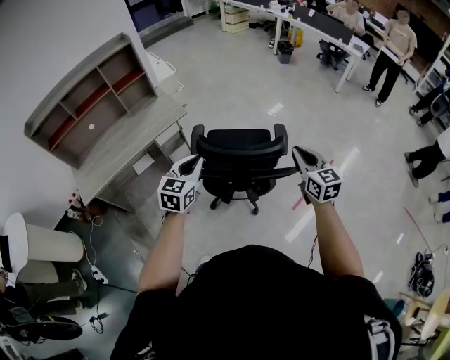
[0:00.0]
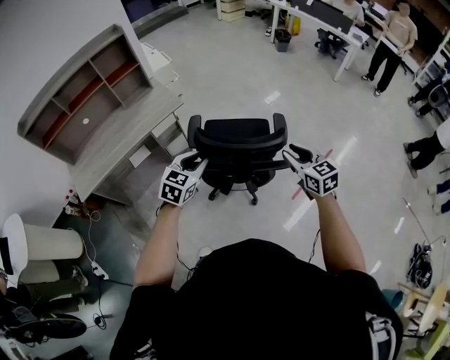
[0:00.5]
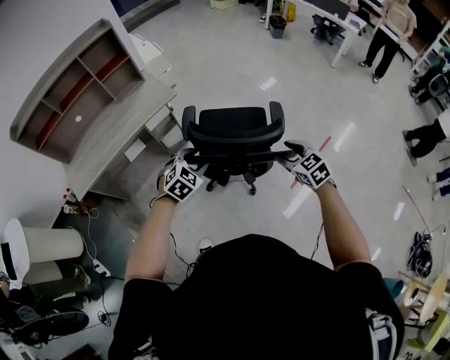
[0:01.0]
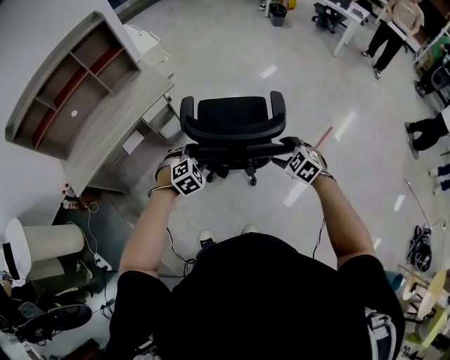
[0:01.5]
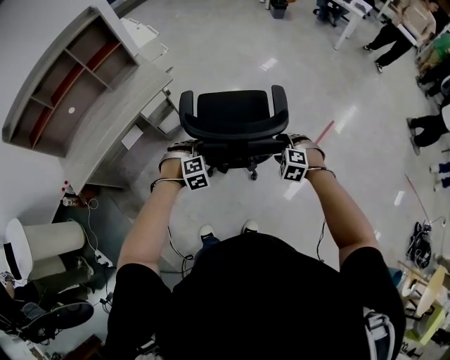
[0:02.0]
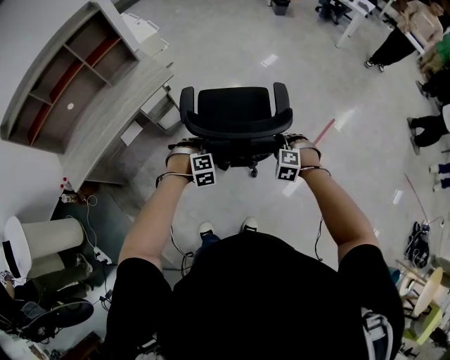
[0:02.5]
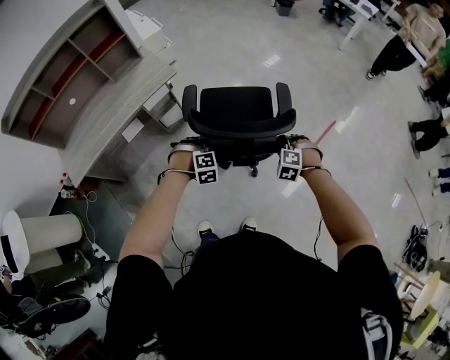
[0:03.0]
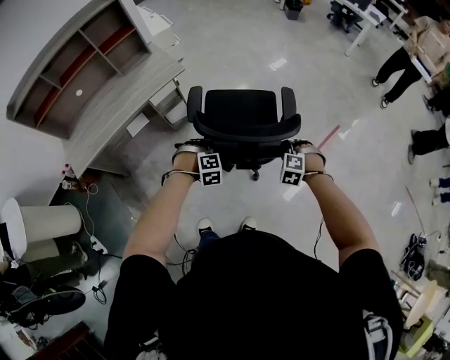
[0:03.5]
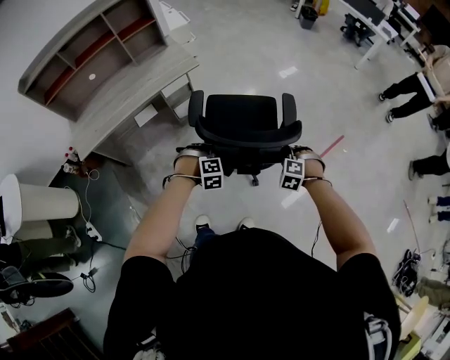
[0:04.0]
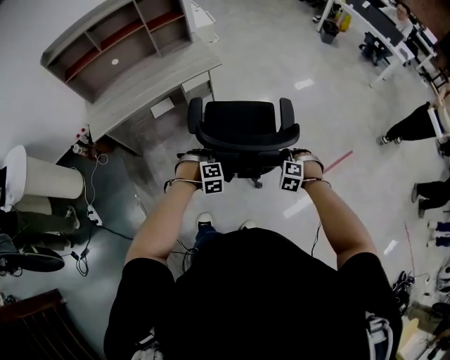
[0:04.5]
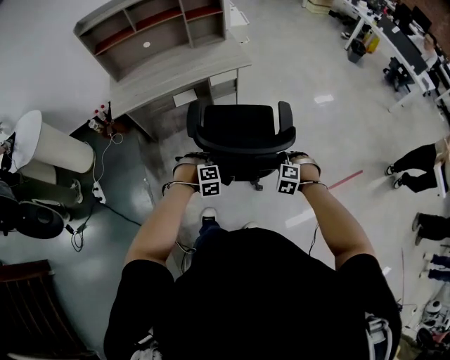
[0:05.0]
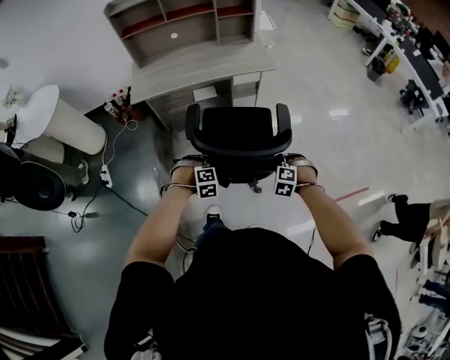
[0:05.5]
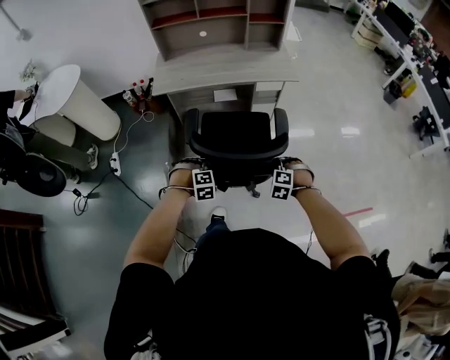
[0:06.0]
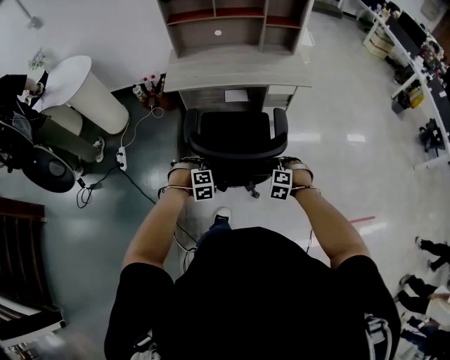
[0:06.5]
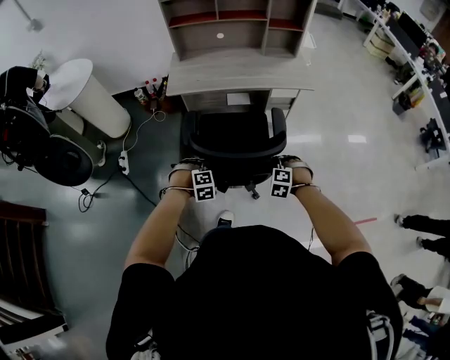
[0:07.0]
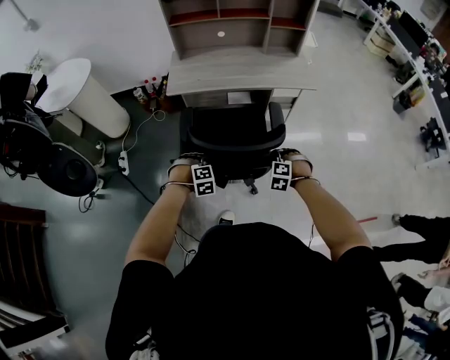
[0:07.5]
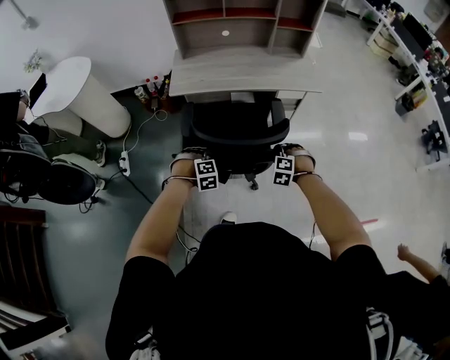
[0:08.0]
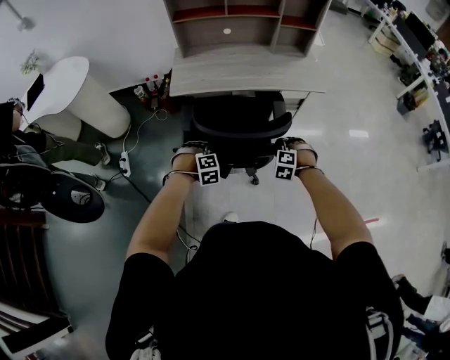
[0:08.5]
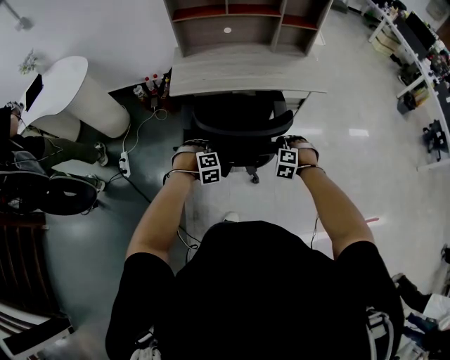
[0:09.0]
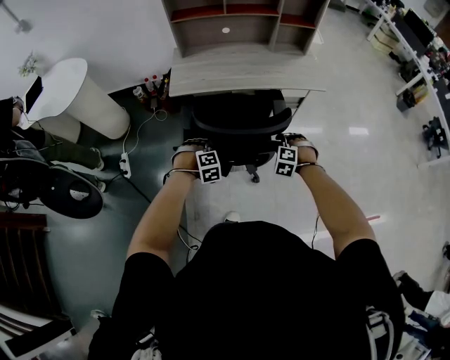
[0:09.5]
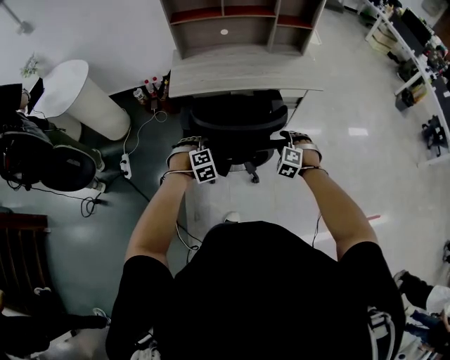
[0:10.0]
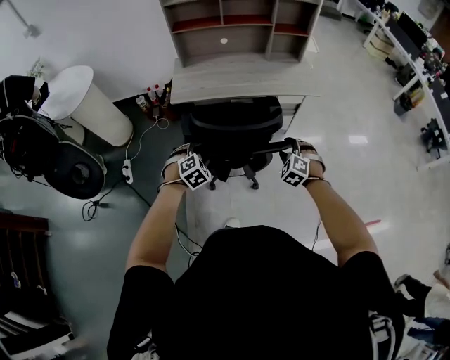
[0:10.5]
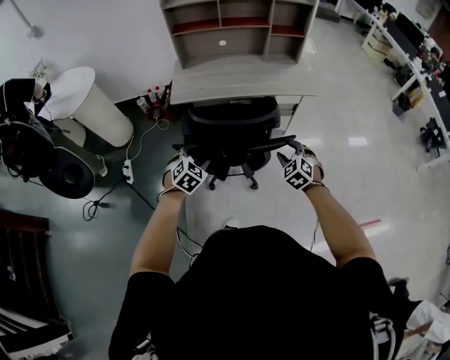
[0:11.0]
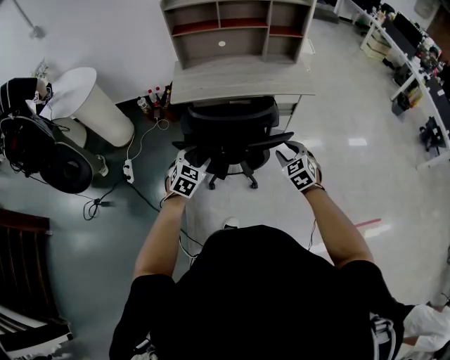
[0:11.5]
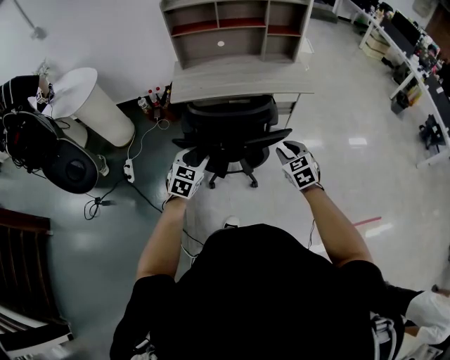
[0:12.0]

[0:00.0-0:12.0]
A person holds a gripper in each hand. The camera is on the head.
0:00.0 to 0:02.0: Both grippers travel together downward, roughly 25 cm. The left gripper tilts its fingers some 40 degrees downward, and opens its fingers. Meanwhile the right gripper tips its fingers downward by some 50 degrees, and opens.
0:02.0 to 0:04.0: The right gripper travels backward by about 5 cm, and closes its fingers; the left gripper heads backward, covering approximately 10 cm, and closes its fingers.
0:04.0 to 0:06.0: The left gripper ends up some 35 cm from where it was, and changes its angle by about 30 degrees, while the right gripper moves approximately 35 cm, and turns by approximately 30 degrees.
0:06.0 to 0:08.0: The grippers both shift forward and to the left by some 15 cm.
0:08.0 to 0:10.0: The grippers both shift forward by approximately 5 cm. The left gripper opens its fingers. The right gripper opens.
0:10.0 to 0:12.0: The two grippers go about 15 cm upward and backward. The right gripper rotates around the line of its fingers by approximately 50 degrees, clockwise from behind, and closes its fingers. The left gripper rotates around the line of its fingers by about 50 degrees, counterclockwise from behind.

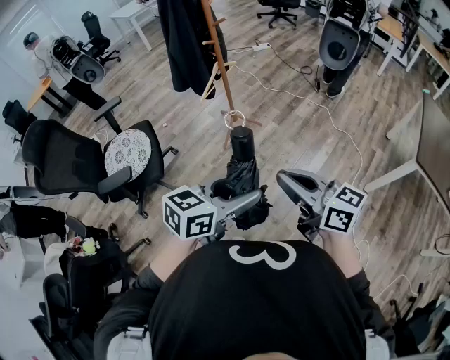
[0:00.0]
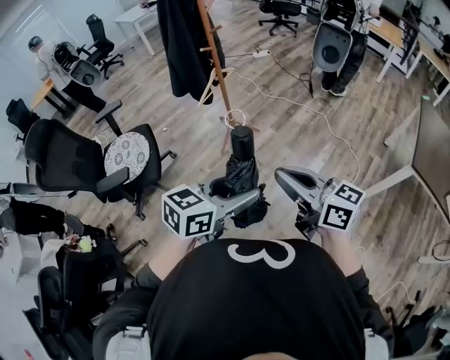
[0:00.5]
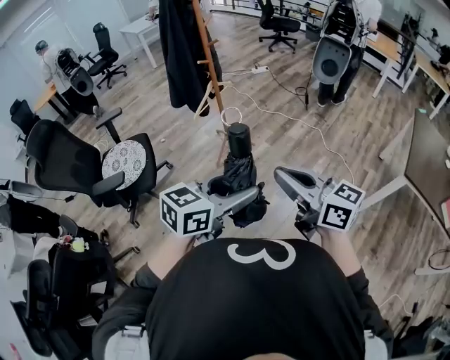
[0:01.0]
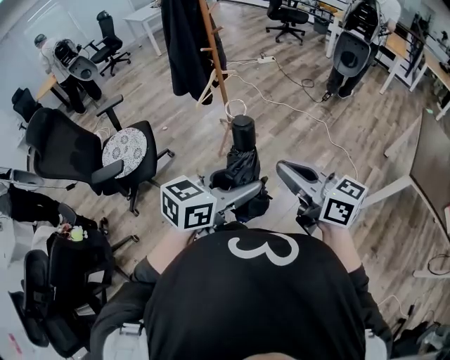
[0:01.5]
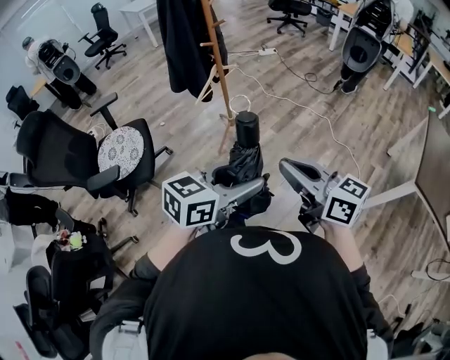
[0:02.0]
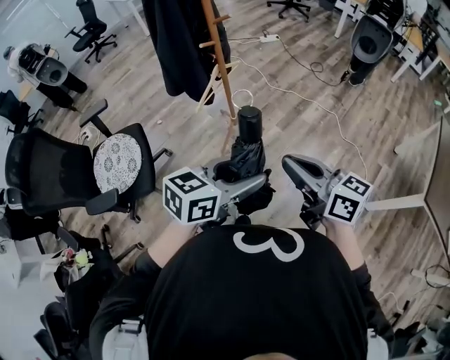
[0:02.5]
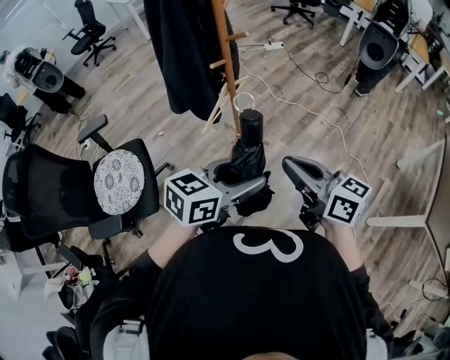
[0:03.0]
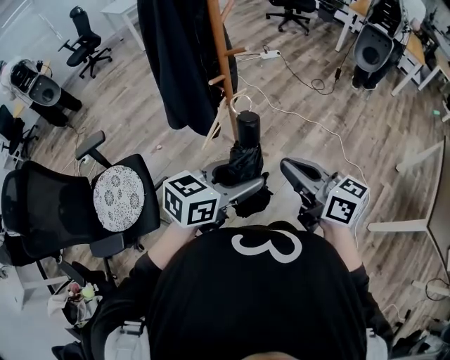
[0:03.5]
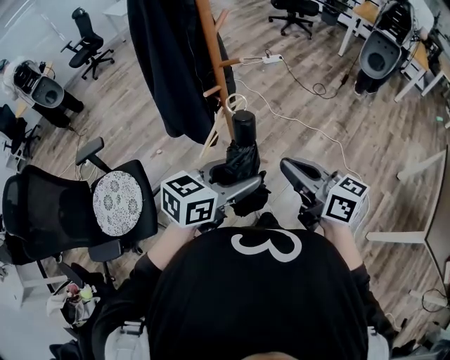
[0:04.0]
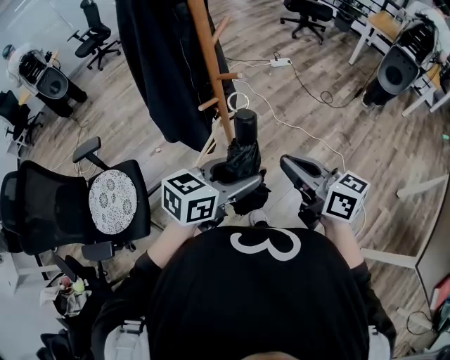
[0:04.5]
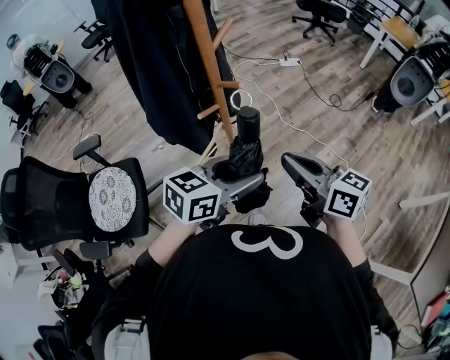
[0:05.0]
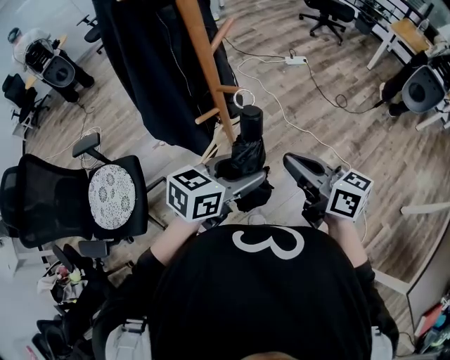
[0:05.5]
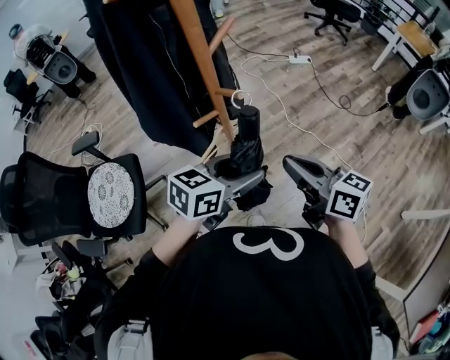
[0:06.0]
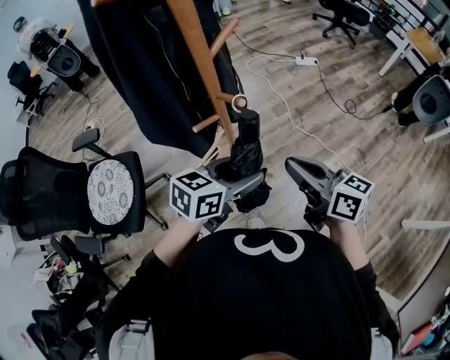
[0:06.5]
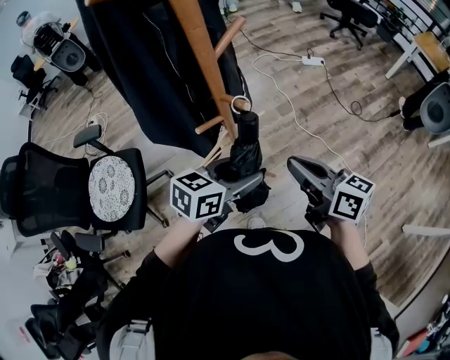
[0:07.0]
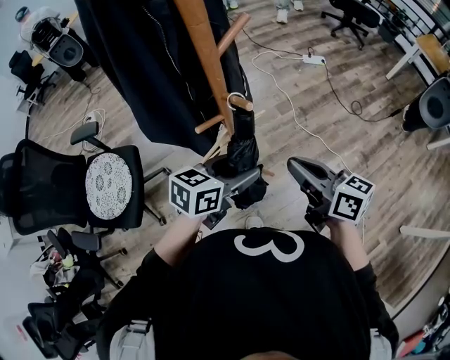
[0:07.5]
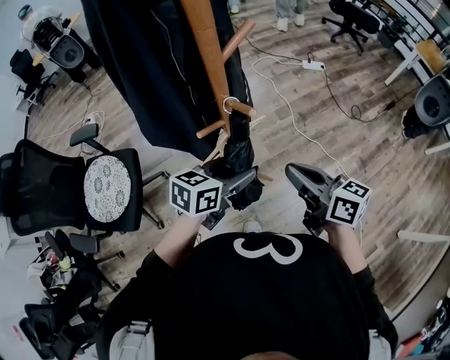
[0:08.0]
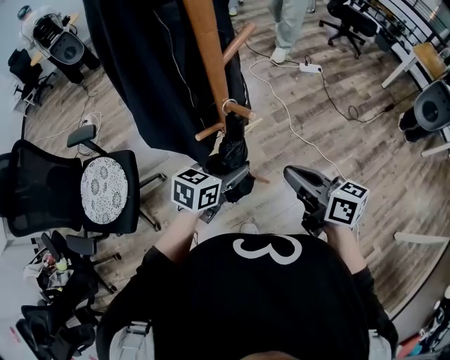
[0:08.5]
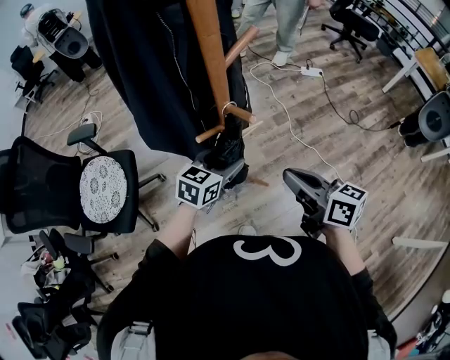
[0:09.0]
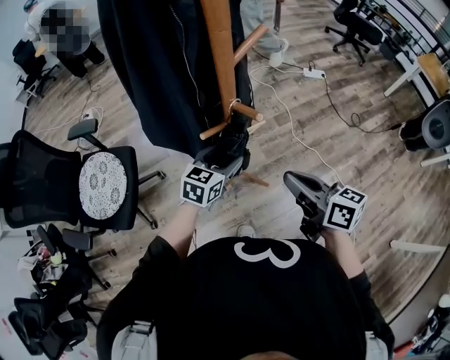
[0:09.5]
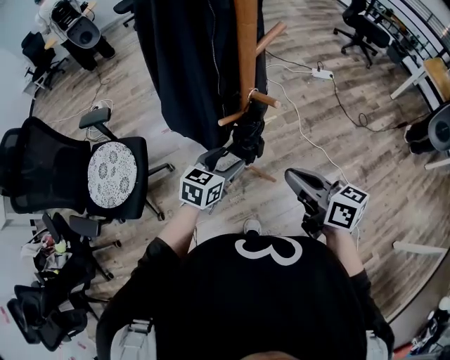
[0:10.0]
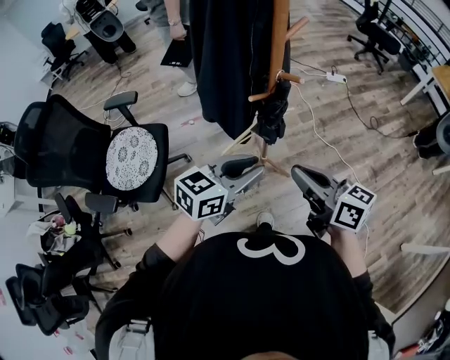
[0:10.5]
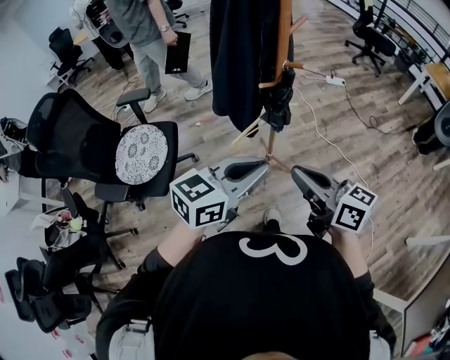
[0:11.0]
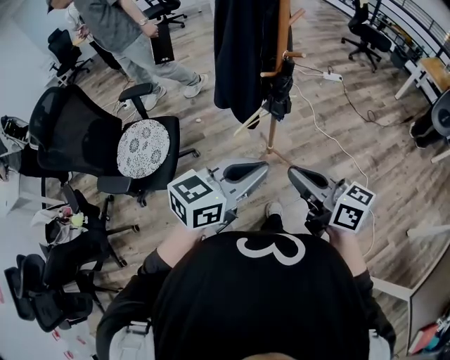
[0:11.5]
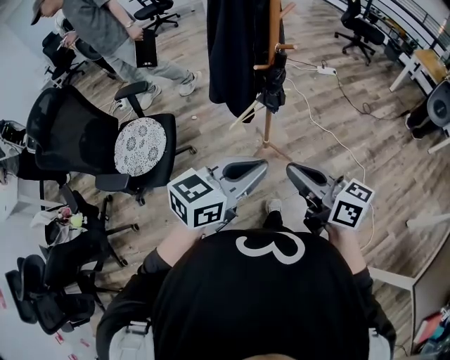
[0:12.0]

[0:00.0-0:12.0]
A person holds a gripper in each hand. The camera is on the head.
0:00.0 to 0:02.0: Both grippers travel together forward and to the right, some 10 cm.
0:02.0 to 0:04.0: The grippers both shift forward by some 35 cm.
0:04.0 to 0:06.0: The grippers both shift forward by some 20 cm.
0:06.0 to 0:08.0: The left gripper travels downward and forward by roughly 10 cm; the right gripper ends up about 5 cm from where it was.
0:08.0 to 0:10.0: The right gripper moves roughly 5 cm; the left gripper is displaced to the left and downward by some 10 cm.
0:10.0 to 0:12.0: The right gripper travels backward by about 25 cm, while the left gripper is displaced backward and upward by about 40 cm, turns by approximately 30 degrees, and closes its fingers.

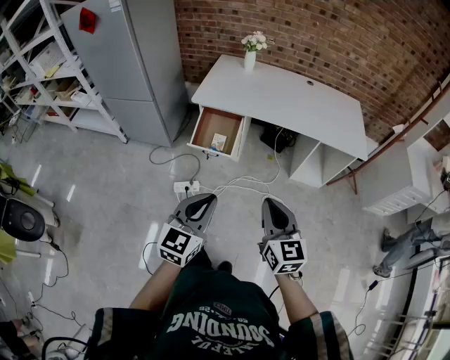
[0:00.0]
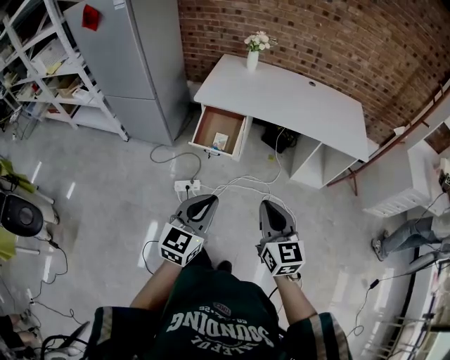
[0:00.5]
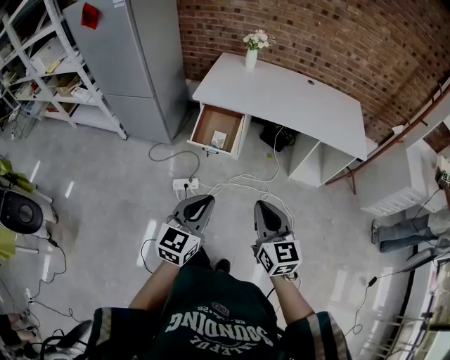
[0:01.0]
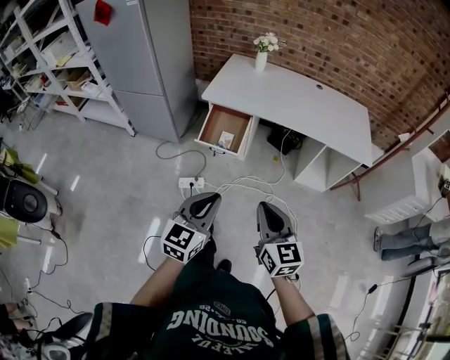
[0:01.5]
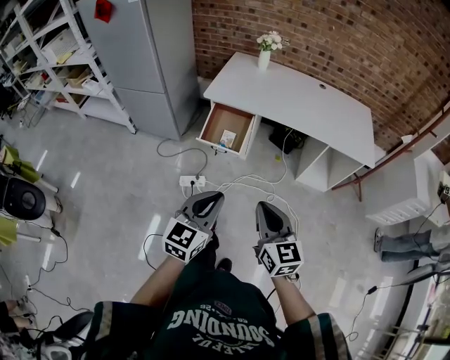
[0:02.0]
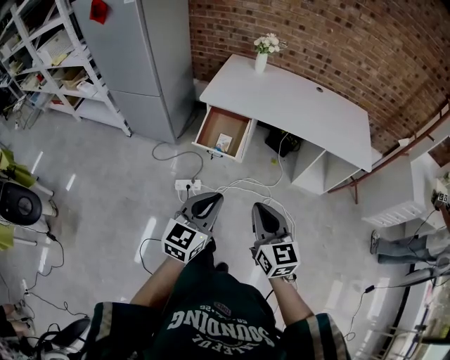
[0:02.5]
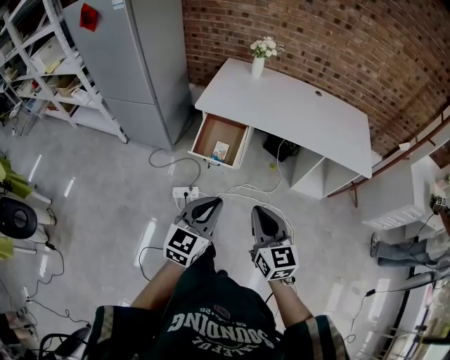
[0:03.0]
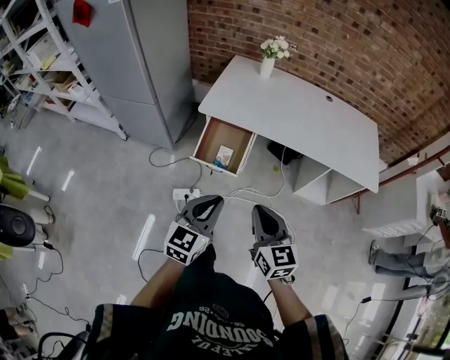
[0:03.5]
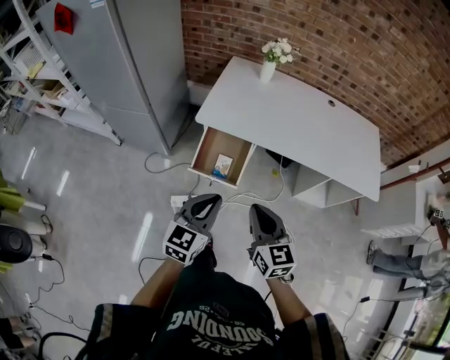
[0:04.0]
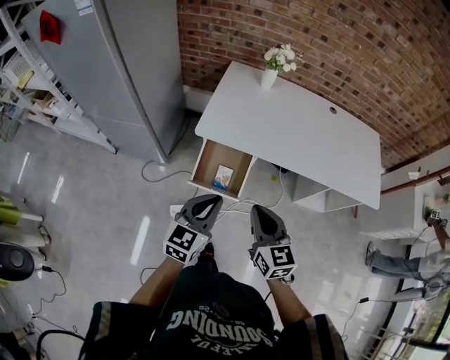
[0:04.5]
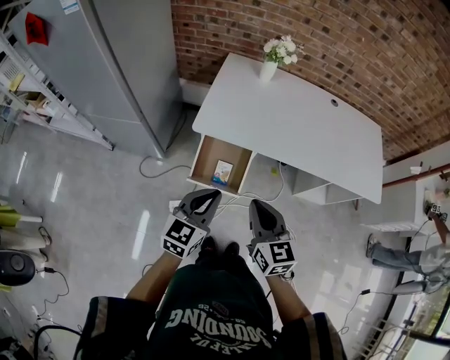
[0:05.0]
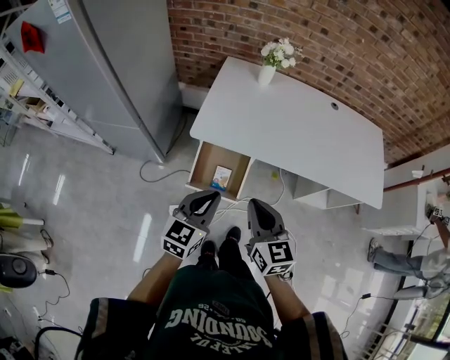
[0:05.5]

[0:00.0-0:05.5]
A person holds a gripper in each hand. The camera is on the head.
0:00.0 to 0:02.0: There are only small adjustments of the grippers.
0:02.0 to 0:03.5: The grippers both shift forward by about 15 cm.
0:03.5 to 0:05.5: The grippers both shift forward by some 20 cm.
